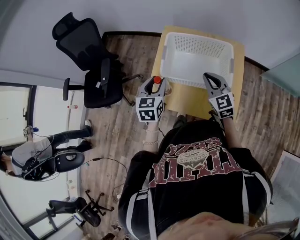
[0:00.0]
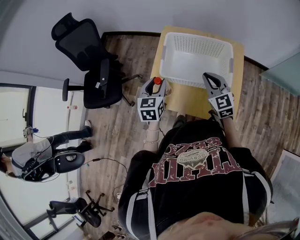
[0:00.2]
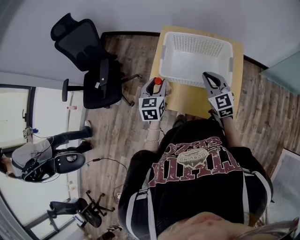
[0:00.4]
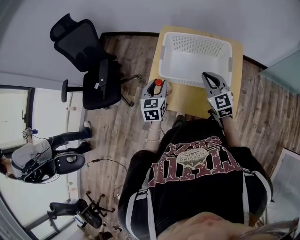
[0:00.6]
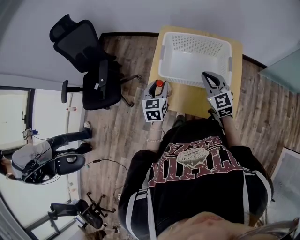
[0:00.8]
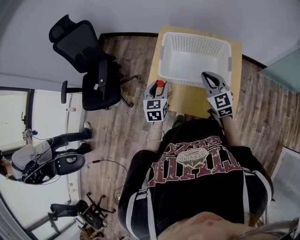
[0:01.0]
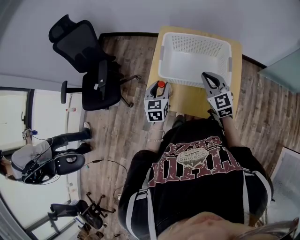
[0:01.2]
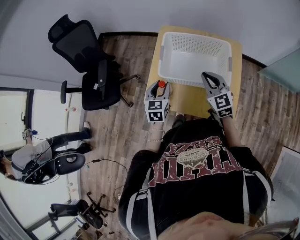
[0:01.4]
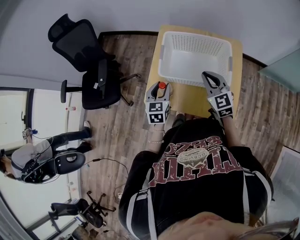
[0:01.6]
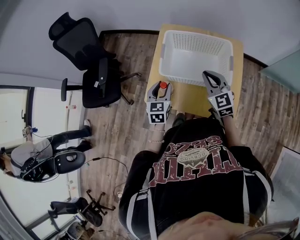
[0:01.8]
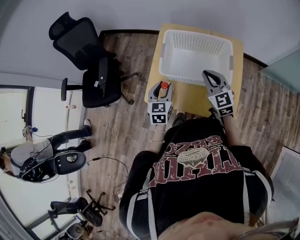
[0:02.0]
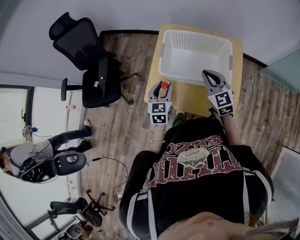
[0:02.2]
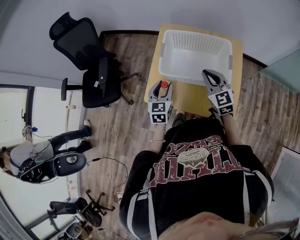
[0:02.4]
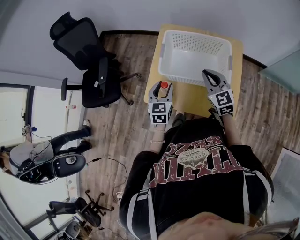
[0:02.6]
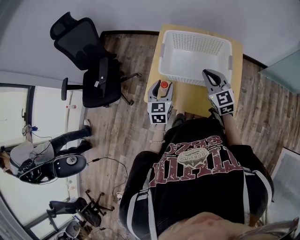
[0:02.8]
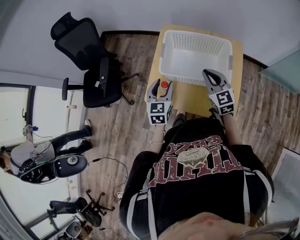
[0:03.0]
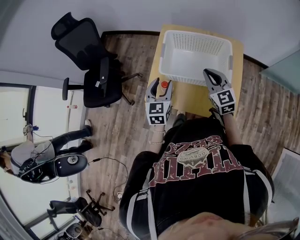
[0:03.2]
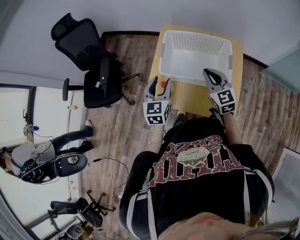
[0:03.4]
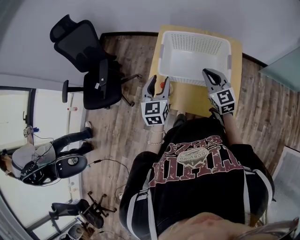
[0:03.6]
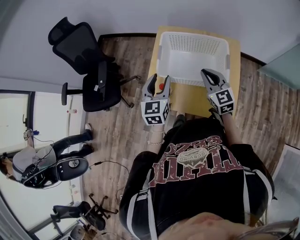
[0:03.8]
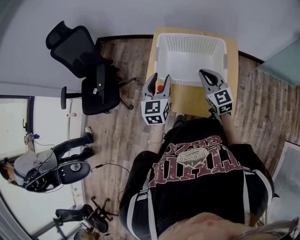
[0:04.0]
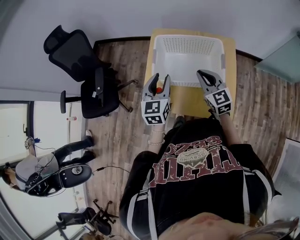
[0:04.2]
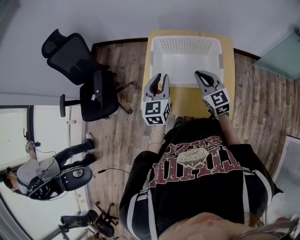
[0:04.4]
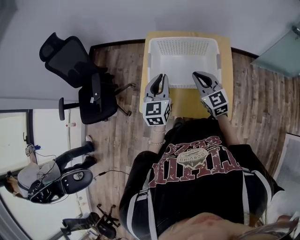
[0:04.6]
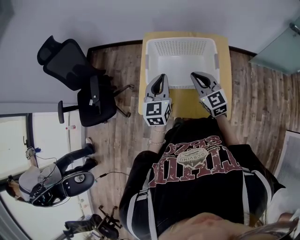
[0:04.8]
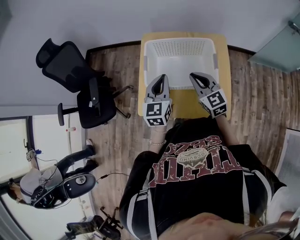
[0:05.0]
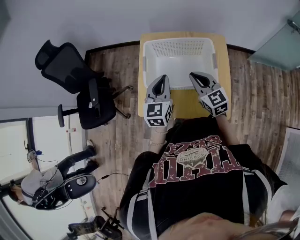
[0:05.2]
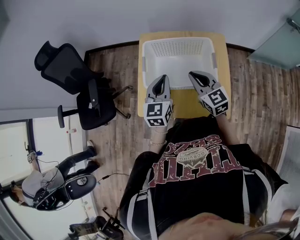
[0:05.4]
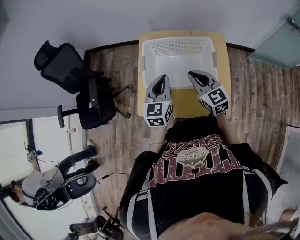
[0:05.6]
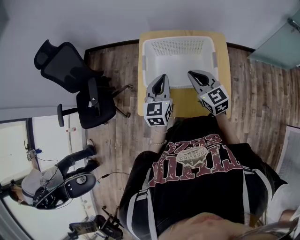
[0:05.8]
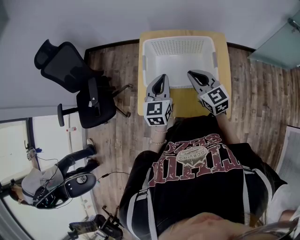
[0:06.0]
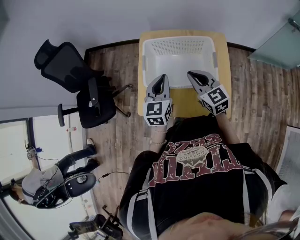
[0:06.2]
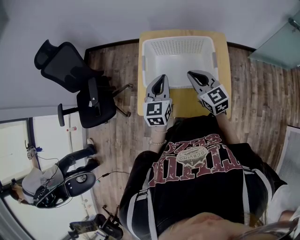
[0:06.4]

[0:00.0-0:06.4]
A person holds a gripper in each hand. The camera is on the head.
0:00.0 to 0:01.6: The left gripper shifts some 5 cm downward.
0:01.6 to 0:03.2: The grippers stay close to where they were, moving slightly.
0:03.2 to 0:04.8: The left gripper shifts approximately 5 cm to the right, and closes its fingers.
0:04.8 to 0:06.4: There are only small adjustments of the grippers.

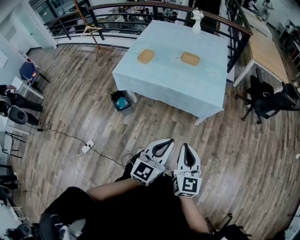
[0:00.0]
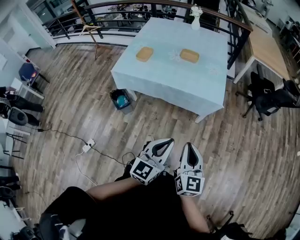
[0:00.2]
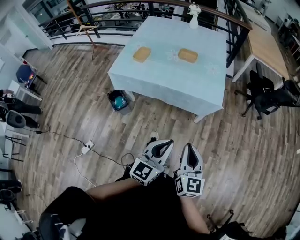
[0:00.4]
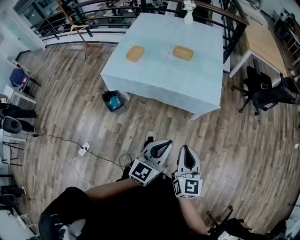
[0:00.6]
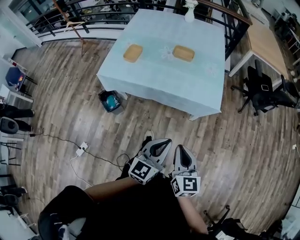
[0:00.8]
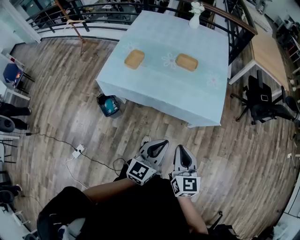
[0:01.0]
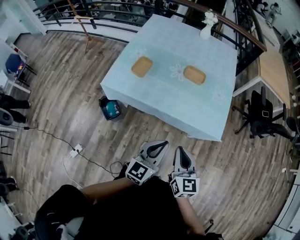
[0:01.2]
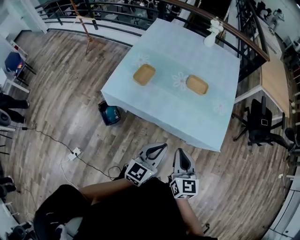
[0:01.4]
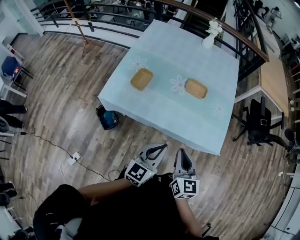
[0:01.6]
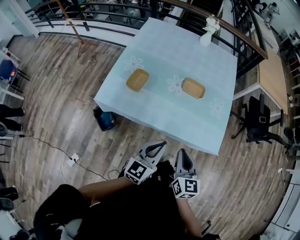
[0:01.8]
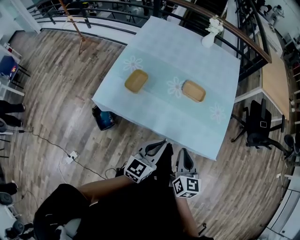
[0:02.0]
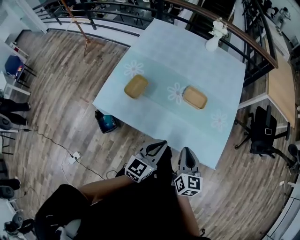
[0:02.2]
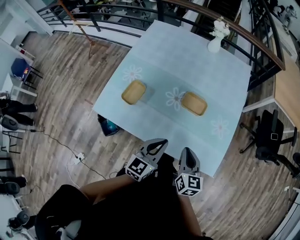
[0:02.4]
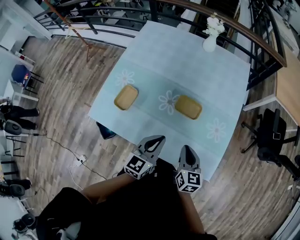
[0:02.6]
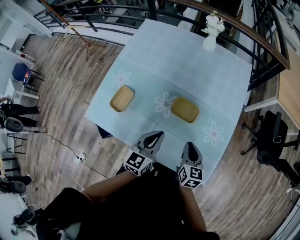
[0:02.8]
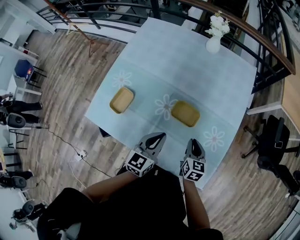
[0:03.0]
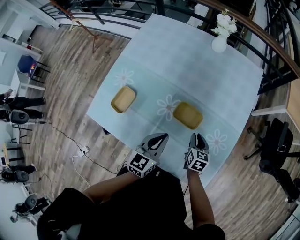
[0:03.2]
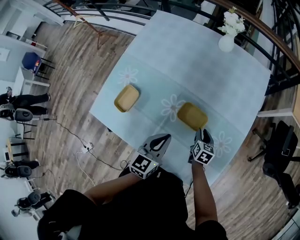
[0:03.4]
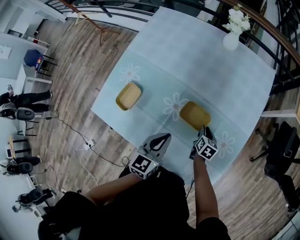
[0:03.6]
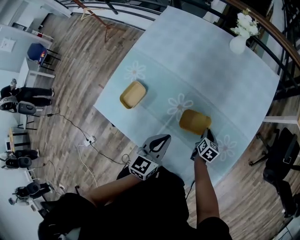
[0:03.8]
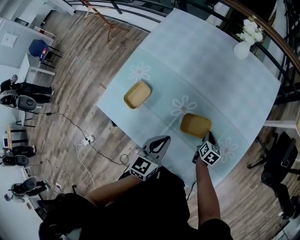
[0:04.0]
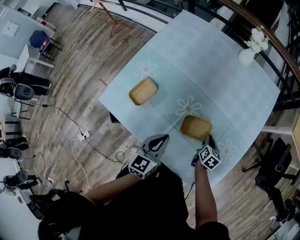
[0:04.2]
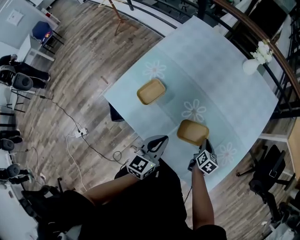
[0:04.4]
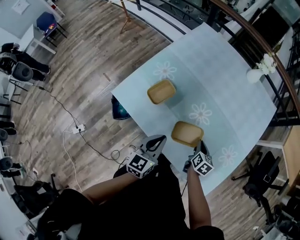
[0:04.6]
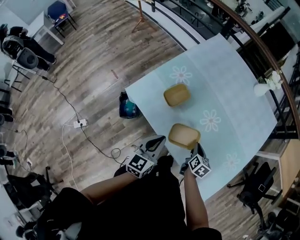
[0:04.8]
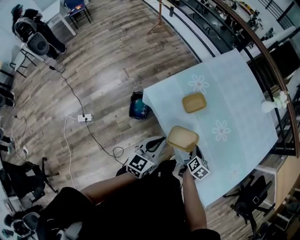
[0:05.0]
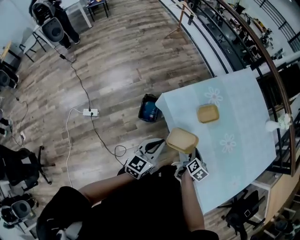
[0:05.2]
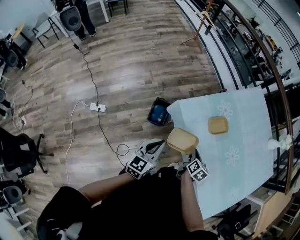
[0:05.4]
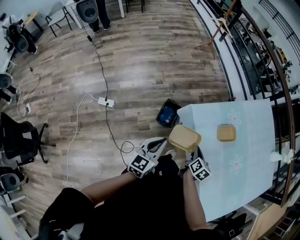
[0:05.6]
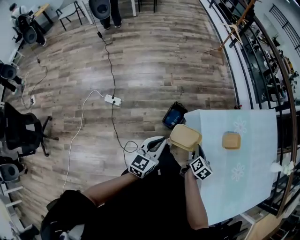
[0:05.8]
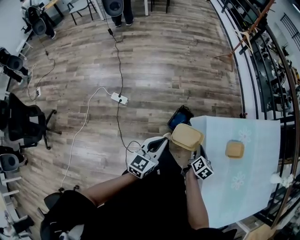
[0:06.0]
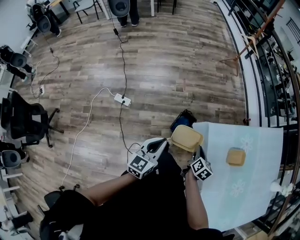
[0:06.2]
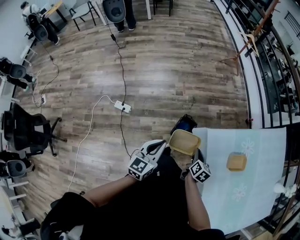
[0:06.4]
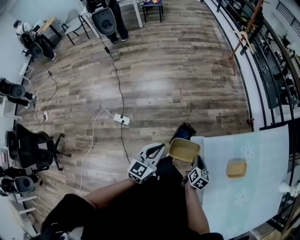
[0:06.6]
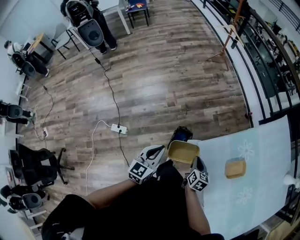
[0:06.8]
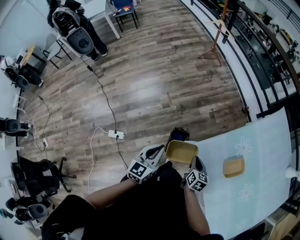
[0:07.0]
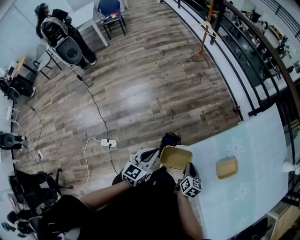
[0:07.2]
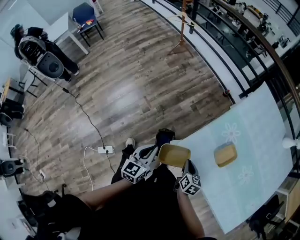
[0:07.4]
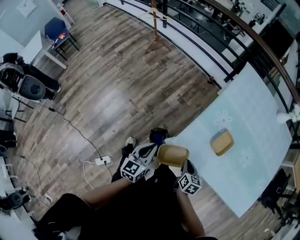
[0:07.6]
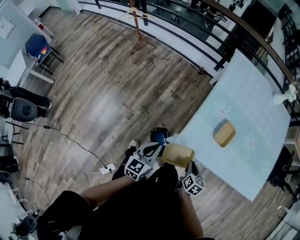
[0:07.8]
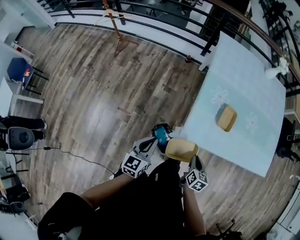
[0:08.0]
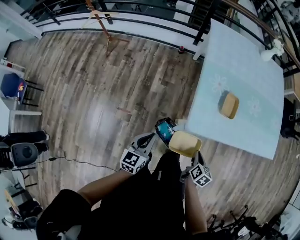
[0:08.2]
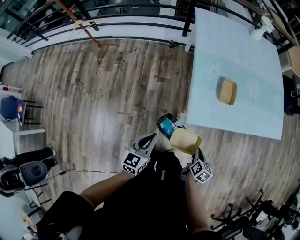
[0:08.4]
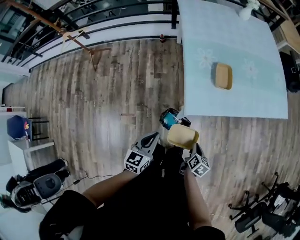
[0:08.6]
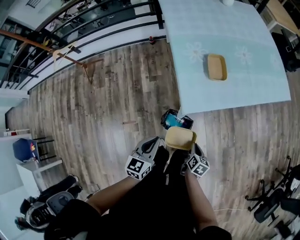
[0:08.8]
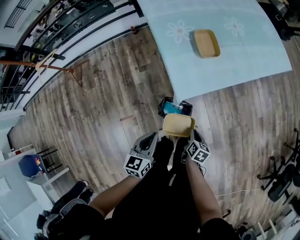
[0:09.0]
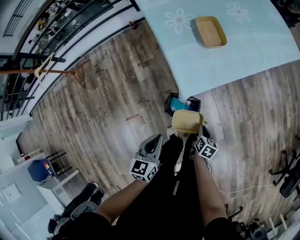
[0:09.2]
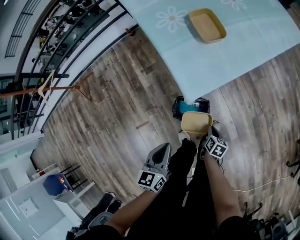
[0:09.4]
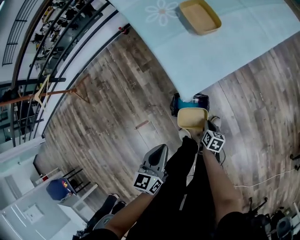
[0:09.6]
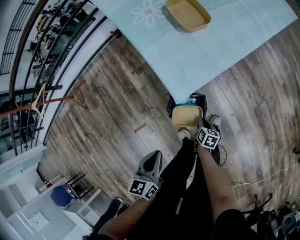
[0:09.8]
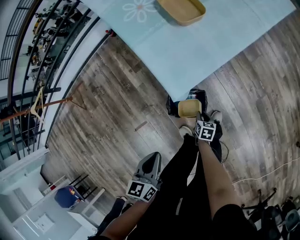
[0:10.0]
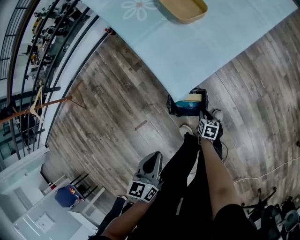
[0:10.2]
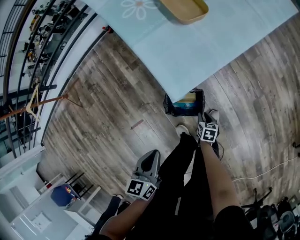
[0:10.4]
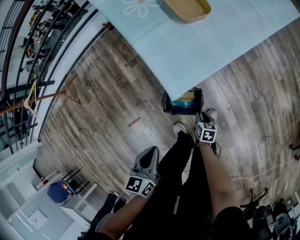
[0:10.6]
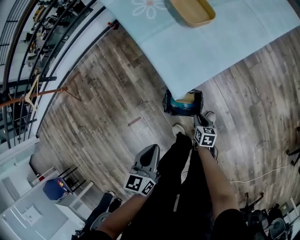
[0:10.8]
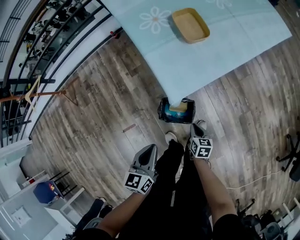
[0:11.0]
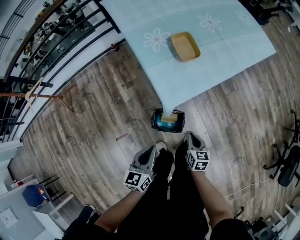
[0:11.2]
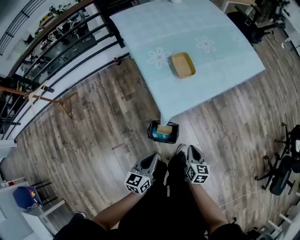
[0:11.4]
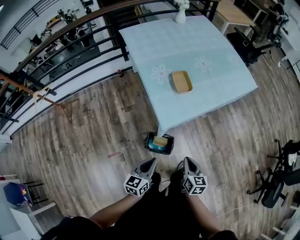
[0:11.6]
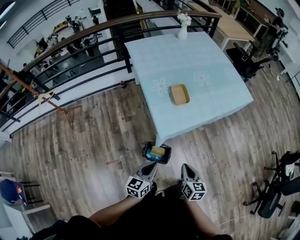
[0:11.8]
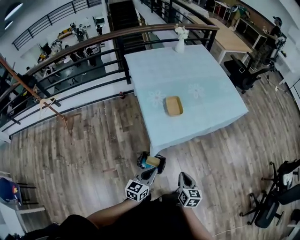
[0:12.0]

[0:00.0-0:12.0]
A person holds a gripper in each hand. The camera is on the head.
0:00.0 to 0:01.6: Both grippers move forward and to the left, some 35 cm.
0:01.6 to 0:03.0: The left gripper goes roughly 30 cm forward, while the right gripper travels forward, downward and to the right by roughly 40 cm.
0:03.0 to 0:04.4: The left gripper travels to the left by some 10 cm, while the right gripper heads downward and to the left, covering some 10 cm.
0:04.4 to 0:06.0: The two grippers travel together, some 60 cm. The right gripper changes its angle by roughly 40 degrees, while the left gripper turns by about 40 degrees.
0:06.0 to 0:07.6: The left gripper ends up about 35 cm from where it was, and rotates approximately 40 degrees. The right gripper moves about 15 cm, and changes its angle by roughly 30 degrees.
0:07.6 to 0:09.0: The left gripper heads downward, covering about 10 cm, and turns by about 50 degrees. Meanwhile the right gripper shifts by roughly 20 cm, and swivels some 60 degrees.
0:09.0 to 0:10.4: The right gripper heads downward, covering approximately 25 cm. Meanwhile the left gripper goes about 10 cm downward.
0:10.4 to 0:12.0: The left gripper travels upward and to the right by approximately 25 cm, while the right gripper moves upward, some 50 cm, and turns by about 30 degrees.

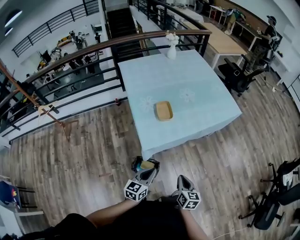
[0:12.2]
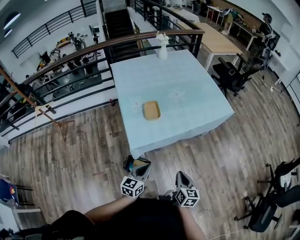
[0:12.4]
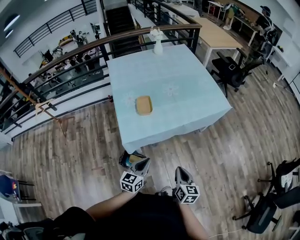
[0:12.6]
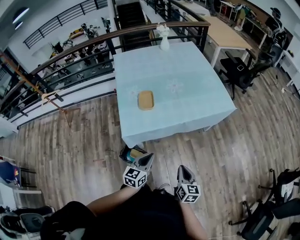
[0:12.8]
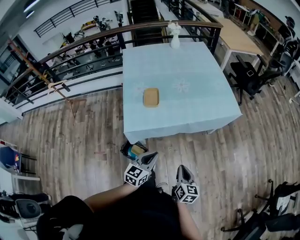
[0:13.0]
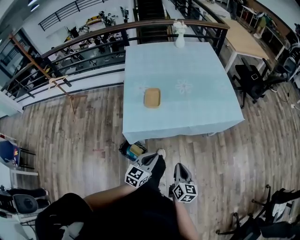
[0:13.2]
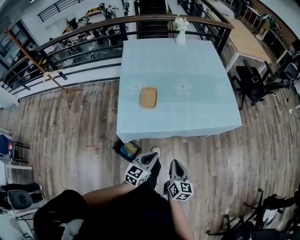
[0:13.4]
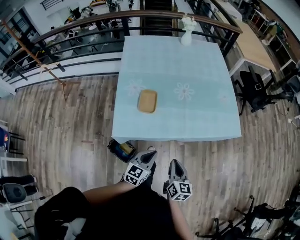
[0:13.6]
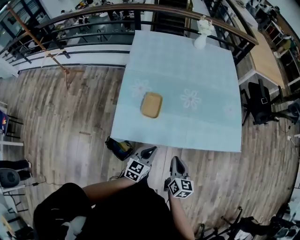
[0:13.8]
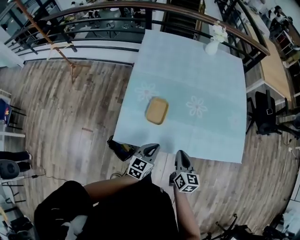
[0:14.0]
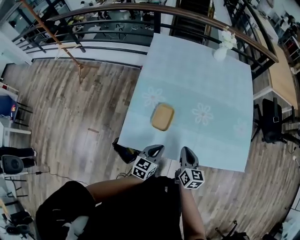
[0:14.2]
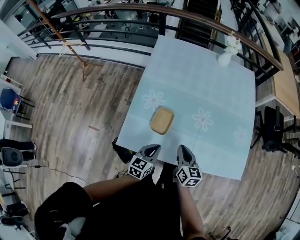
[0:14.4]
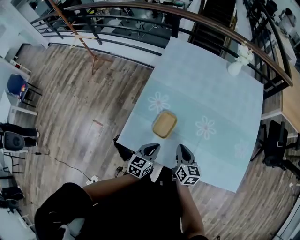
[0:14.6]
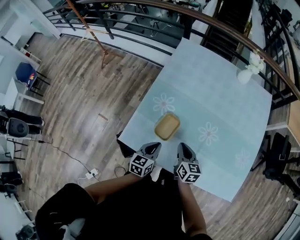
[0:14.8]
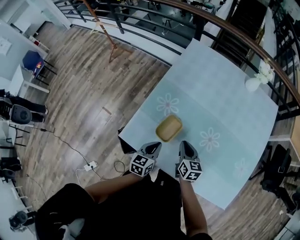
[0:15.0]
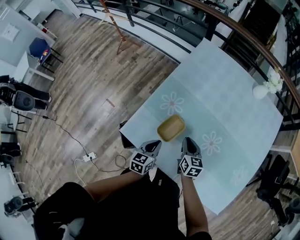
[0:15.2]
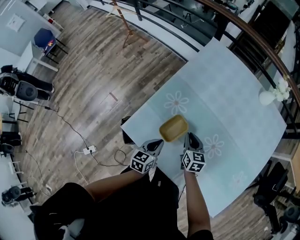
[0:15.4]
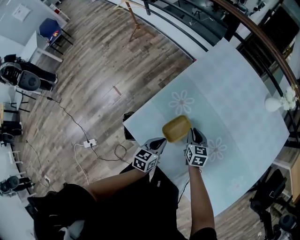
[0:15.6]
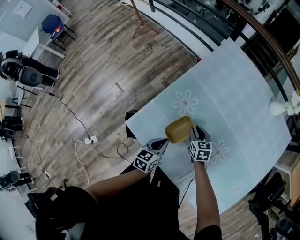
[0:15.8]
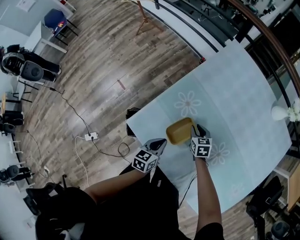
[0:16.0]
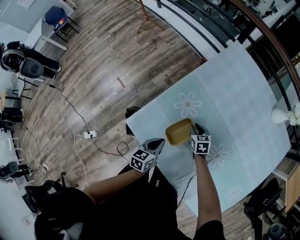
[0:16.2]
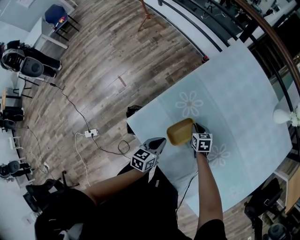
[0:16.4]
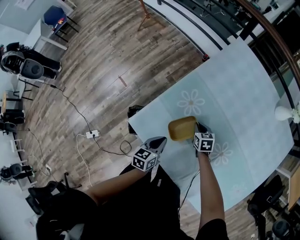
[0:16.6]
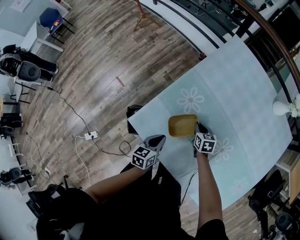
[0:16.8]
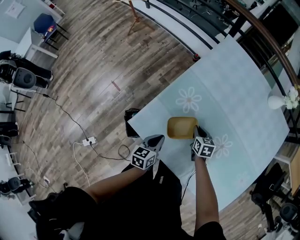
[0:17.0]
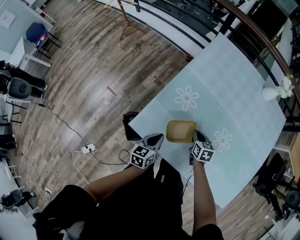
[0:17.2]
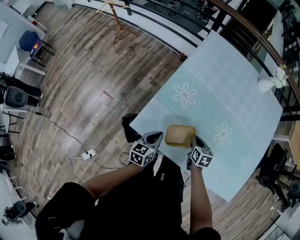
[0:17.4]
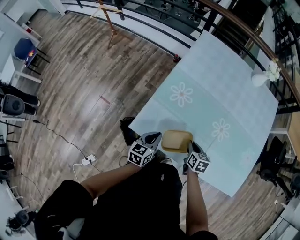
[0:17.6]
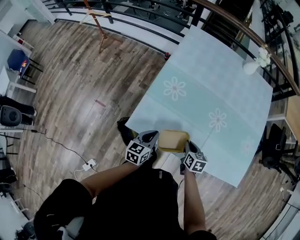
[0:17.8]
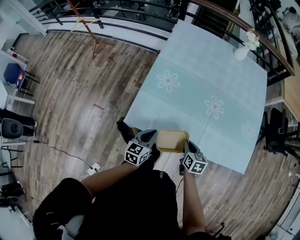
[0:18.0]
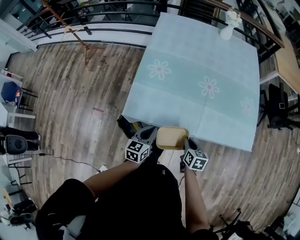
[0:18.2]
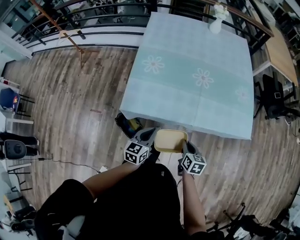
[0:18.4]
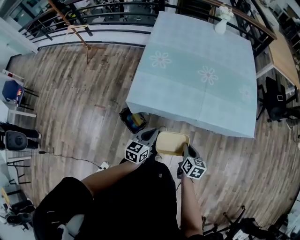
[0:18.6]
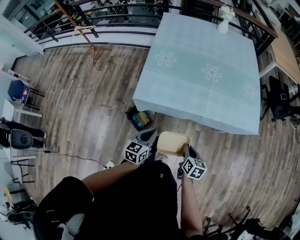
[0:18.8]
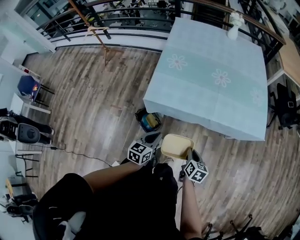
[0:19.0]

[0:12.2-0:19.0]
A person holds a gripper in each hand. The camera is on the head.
0:12.2 to 0:13.6: The right gripper is displaced forward and to the right by approximately 25 cm. The left gripper shifts roughly 30 cm to the right and forward.
0:13.6 to 0:15.0: The left gripper shifts by roughly 25 cm, and changes its angle by approximately 40 degrees. The right gripper moves roughly 35 cm, and changes its angle by about 40 degrees.
0:15.0 to 0:16.2: The right gripper shifts some 20 cm downward and forward, and turns by about 40 degrees. The left gripper is displaced downward by some 5 cm.
0:16.2 to 0:17.6: The right gripper heads backward, covering about 20 cm, and swivels about 40 degrees. The left gripper moves to the left, about 5 cm, and swivels approximately 20 degrees.
0:17.6 to 0:19.0: Both grippers move backward, some 35 cm. The right gripper changes its angle by some 30 degrees.
